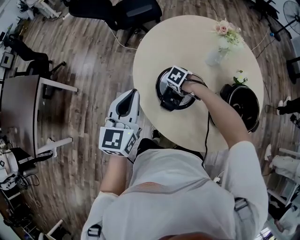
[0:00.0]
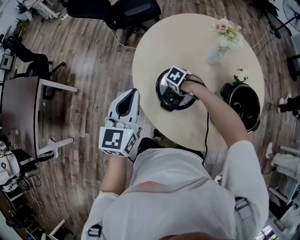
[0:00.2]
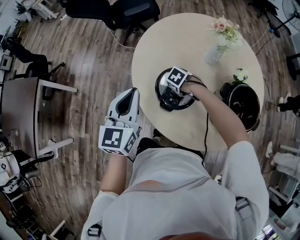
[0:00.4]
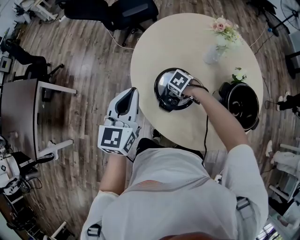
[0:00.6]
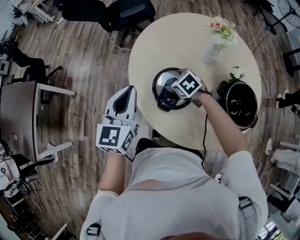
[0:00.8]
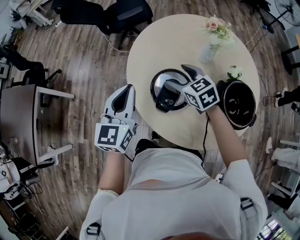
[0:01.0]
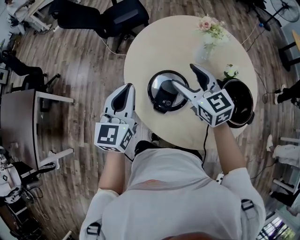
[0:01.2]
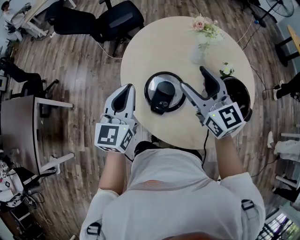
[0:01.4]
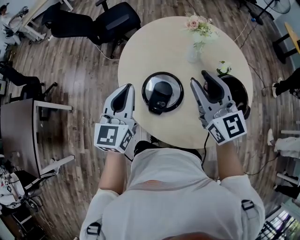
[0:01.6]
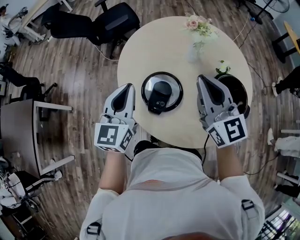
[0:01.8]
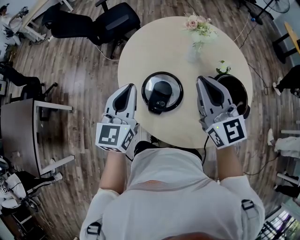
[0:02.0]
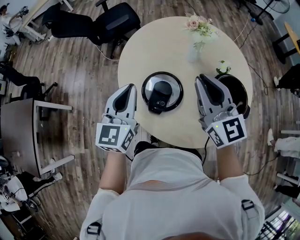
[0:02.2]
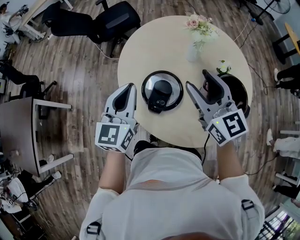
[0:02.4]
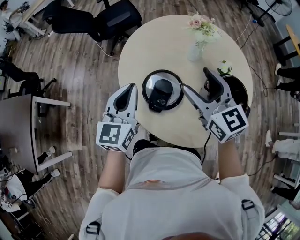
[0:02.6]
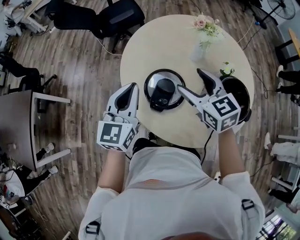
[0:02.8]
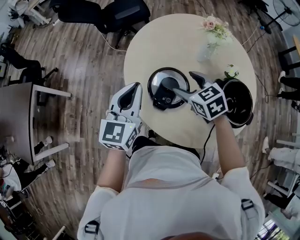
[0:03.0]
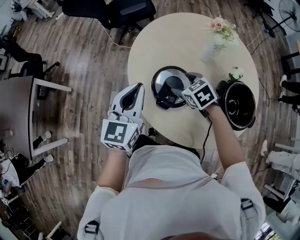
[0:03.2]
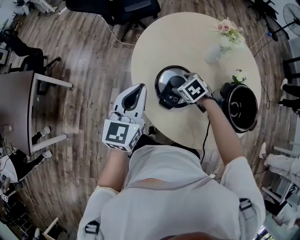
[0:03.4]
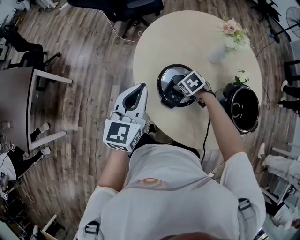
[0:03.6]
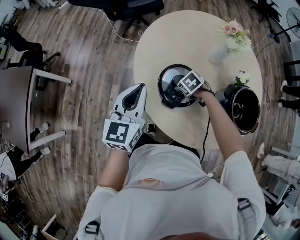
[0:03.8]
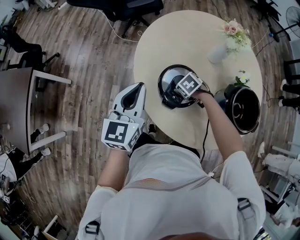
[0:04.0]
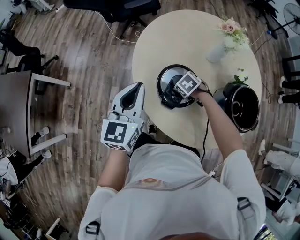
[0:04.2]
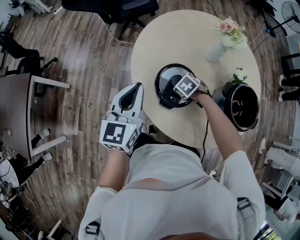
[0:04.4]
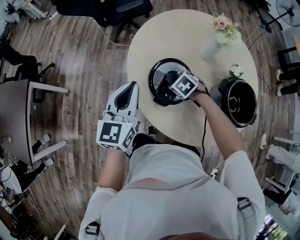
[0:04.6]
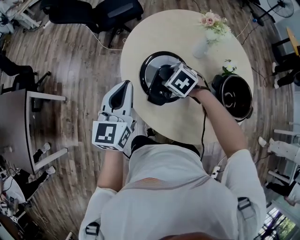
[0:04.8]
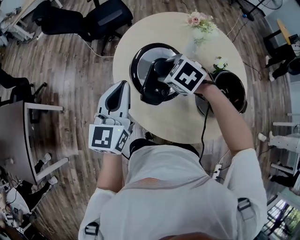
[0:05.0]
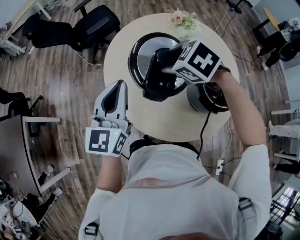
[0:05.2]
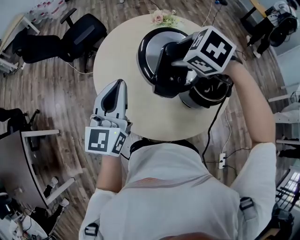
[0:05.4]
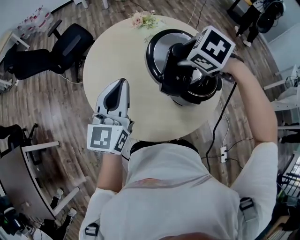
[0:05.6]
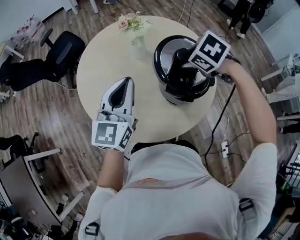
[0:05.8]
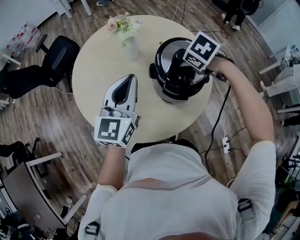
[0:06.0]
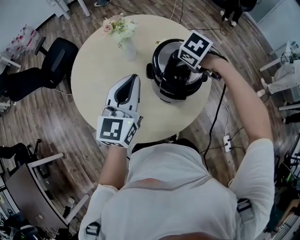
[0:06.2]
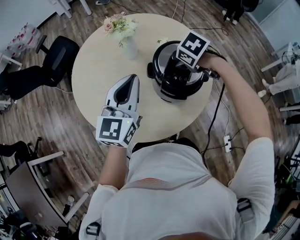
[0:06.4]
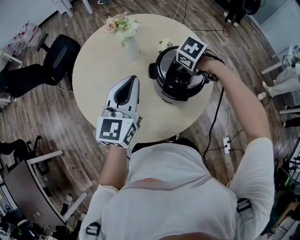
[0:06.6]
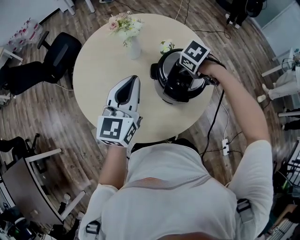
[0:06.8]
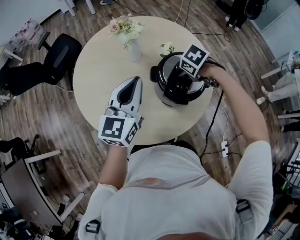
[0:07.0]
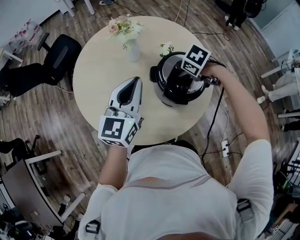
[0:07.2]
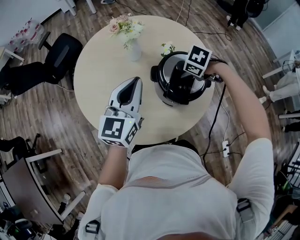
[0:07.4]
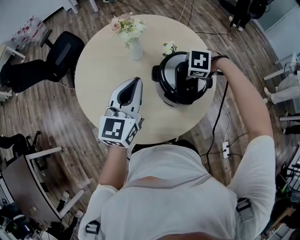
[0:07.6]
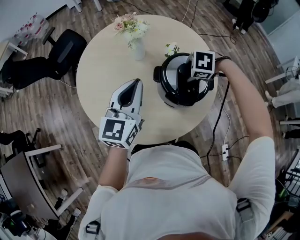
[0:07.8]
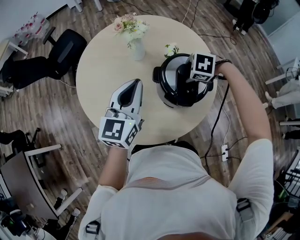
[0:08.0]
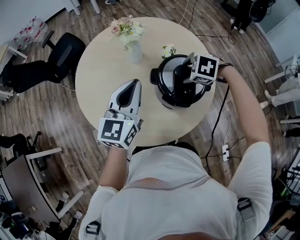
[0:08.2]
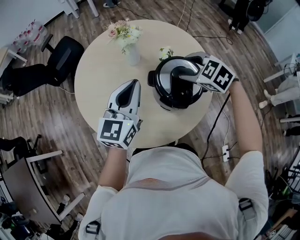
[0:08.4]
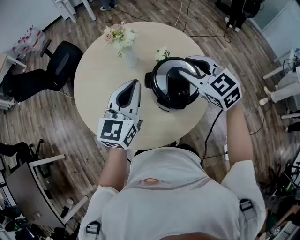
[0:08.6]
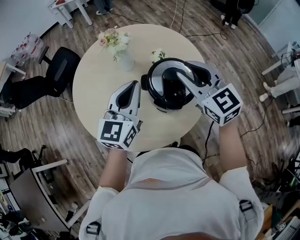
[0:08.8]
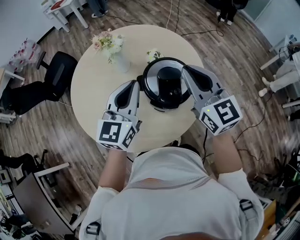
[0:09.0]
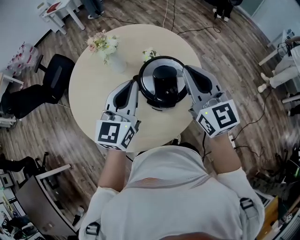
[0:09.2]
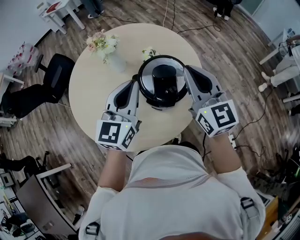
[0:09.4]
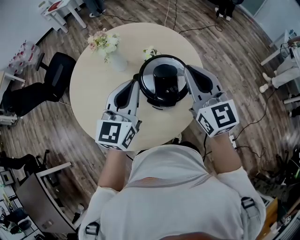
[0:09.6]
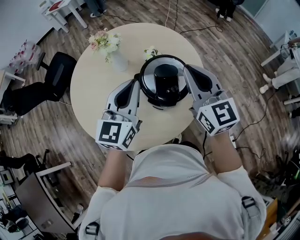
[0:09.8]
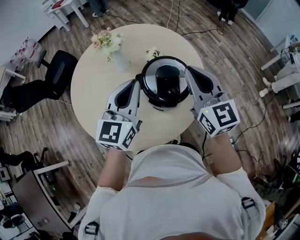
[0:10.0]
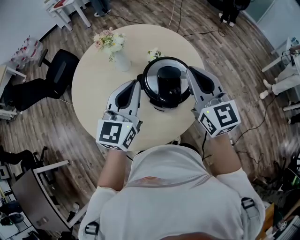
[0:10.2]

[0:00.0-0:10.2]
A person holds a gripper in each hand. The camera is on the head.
0:00.0 to 0:01.4: The right gripper goes roughly 35 cm upward, and angles its fingers upward, by some 80 degrees, while the left gripper ends up roughly 5 cm from where it was.
0:01.4 to 0:03.0: The right gripper is displaced downward by about 15 cm, points its fingers some 40 degrees further downward, and closes, then reopens.
0:03.0 to 0:04.4: The left gripper ends up about 5 cm from where it was, while the right gripper shifts approximately 20 cm downward, and points its fingers about 30 degrees further downward.
0:04.4 to 0:05.8: The right gripper shifts by approximately 40 cm, and turns by about 20 degrees. The left gripper changes place by approximately 25 cm, and turns by some 30 degrees.
0:05.8 to 0:07.2: The left gripper moves roughly 5 cm. Meanwhile the right gripper heads downward, covering some 10 cm.
0:07.2 to 0:08.8: The left gripper ends up about 5 cm from where it was; the right gripper shifts roughly 20 cm upward, angles its fingers upward, by about 70 degrees, and closes its fingers.
0:08.8 to 0:10.2: The right gripper changes place by some 5 cm.

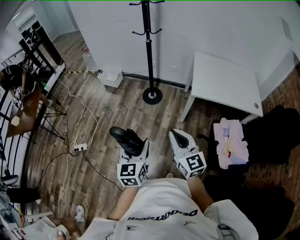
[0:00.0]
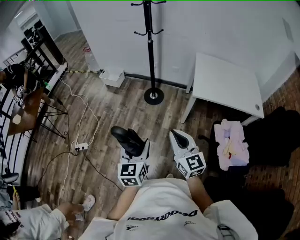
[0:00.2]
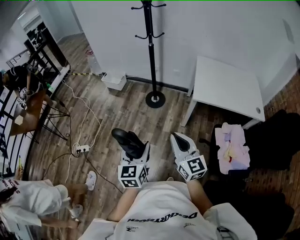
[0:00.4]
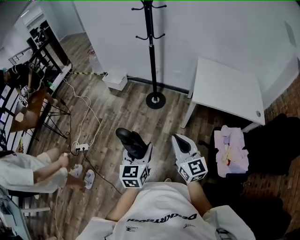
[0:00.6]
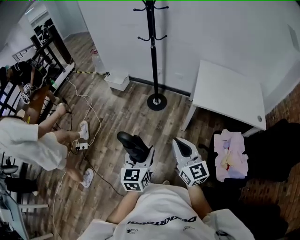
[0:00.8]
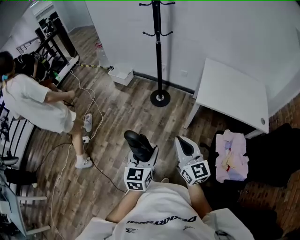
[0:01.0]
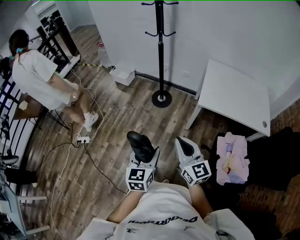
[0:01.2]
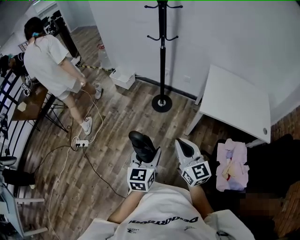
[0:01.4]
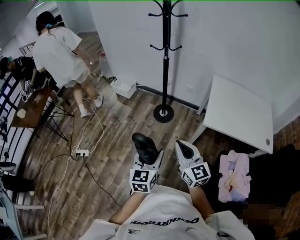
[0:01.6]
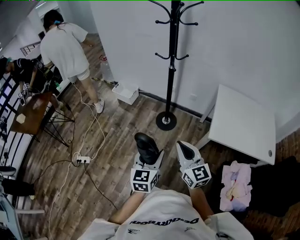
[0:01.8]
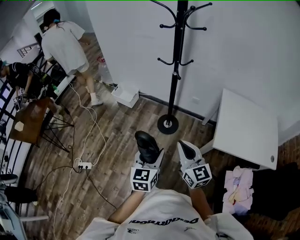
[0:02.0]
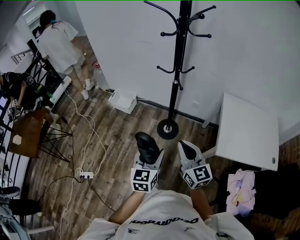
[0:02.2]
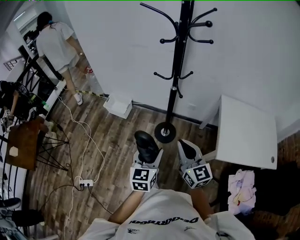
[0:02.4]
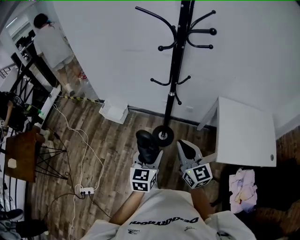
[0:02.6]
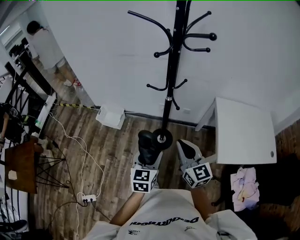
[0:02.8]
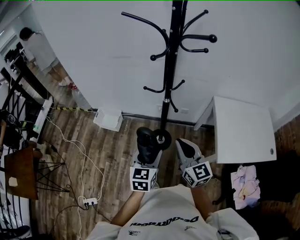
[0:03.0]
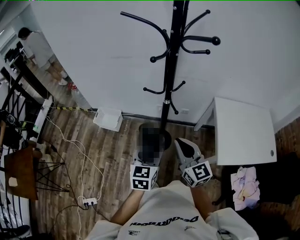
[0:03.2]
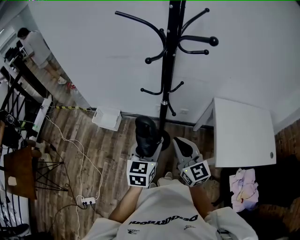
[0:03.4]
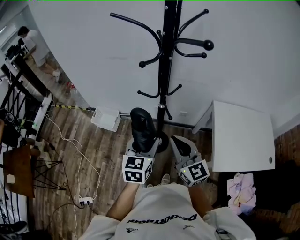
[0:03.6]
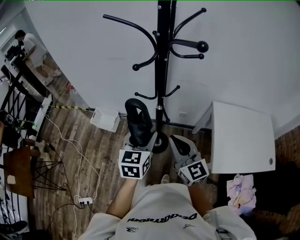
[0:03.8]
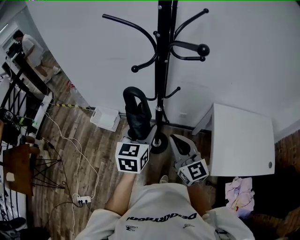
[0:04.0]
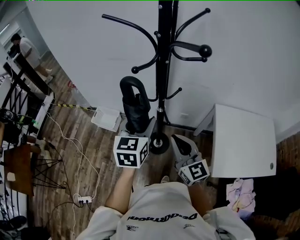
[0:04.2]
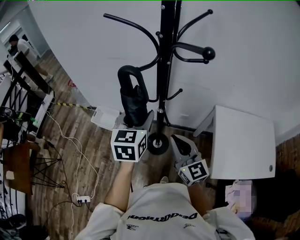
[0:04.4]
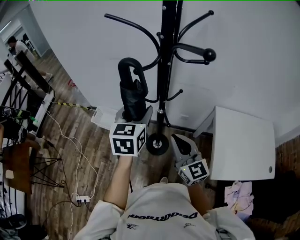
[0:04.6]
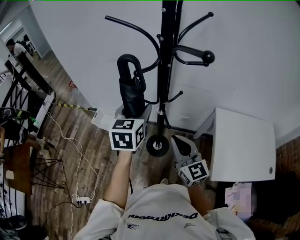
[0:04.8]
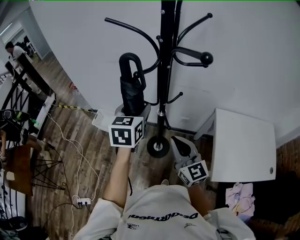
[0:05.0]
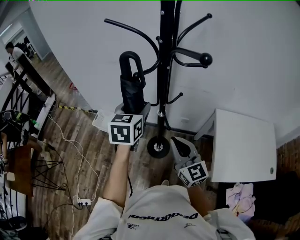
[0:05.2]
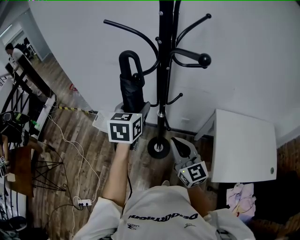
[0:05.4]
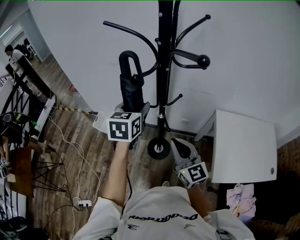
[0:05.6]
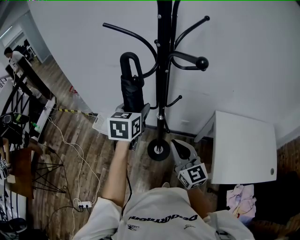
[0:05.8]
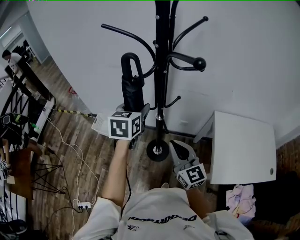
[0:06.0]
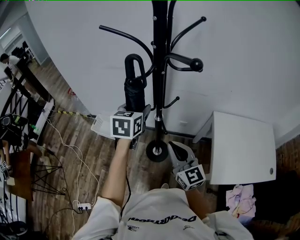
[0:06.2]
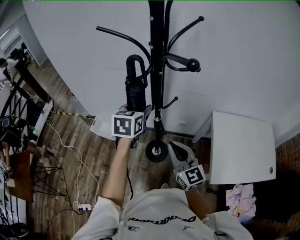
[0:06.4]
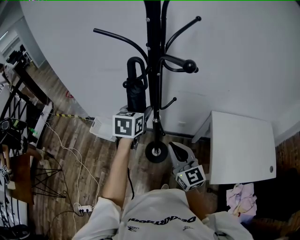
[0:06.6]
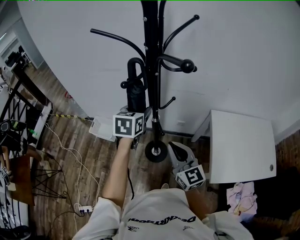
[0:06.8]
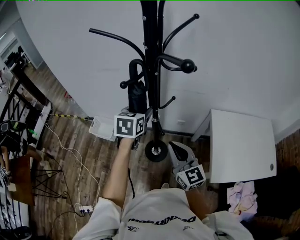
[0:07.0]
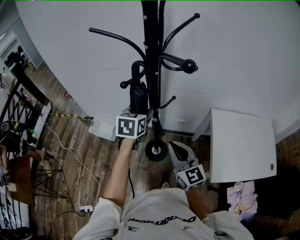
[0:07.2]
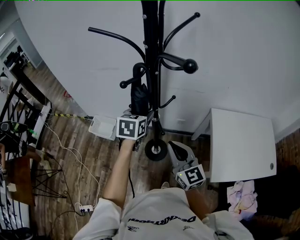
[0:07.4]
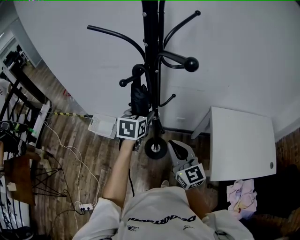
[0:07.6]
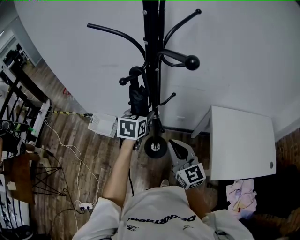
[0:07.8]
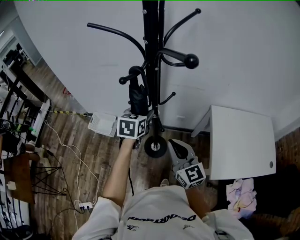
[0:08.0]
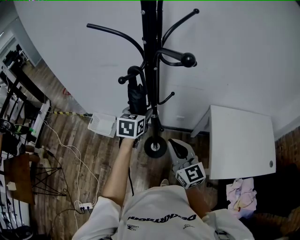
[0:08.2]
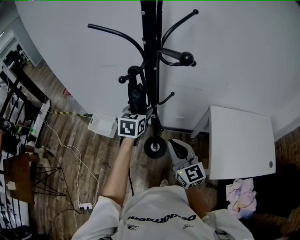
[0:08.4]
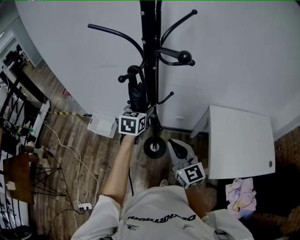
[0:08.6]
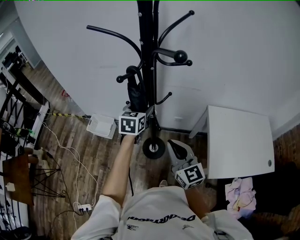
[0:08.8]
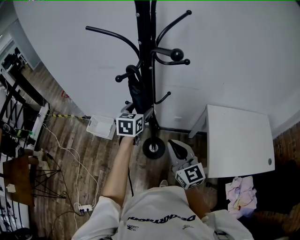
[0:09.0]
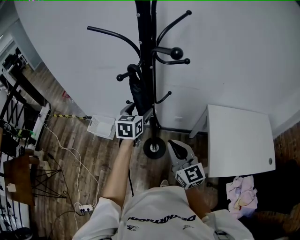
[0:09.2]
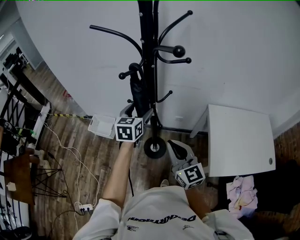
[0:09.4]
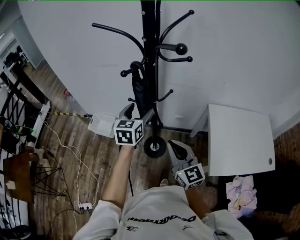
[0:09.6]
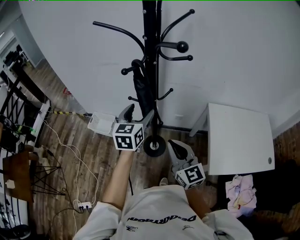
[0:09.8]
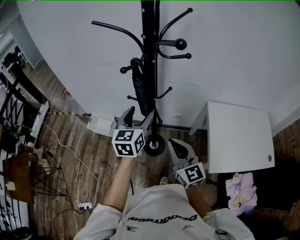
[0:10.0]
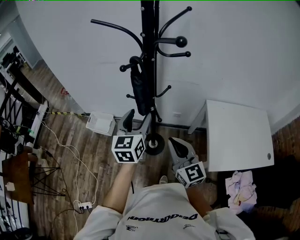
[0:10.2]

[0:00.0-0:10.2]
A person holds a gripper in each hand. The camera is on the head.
0:00.0 to 0:01.4: The left gripper heads to the right and forward, covering roughly 10 cm, while the right gripper shifts approximately 10 cm forward and to the right.
0:01.4 to 0:03.0: The pair of grippers is taken forward, roughly 60 cm.
0:03.0 to 0:04.4: The right gripper shifts about 10 cm forward and to the right. Meanwhile the left gripper shifts some 25 cm forward and upward.
0:04.4 to 0:05.8: The left gripper moves forward, about 5 cm.
0:05.8 to 0:07.2: The left gripper shifts roughly 5 cm downward.
0:07.2 to 0:08.8: The grippers move only a little.
0:08.8 to 0:10.2: The left gripper travels backward and upward by about 15 cm.

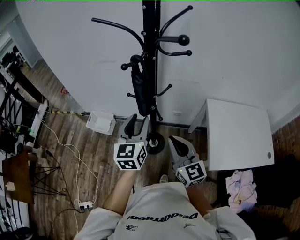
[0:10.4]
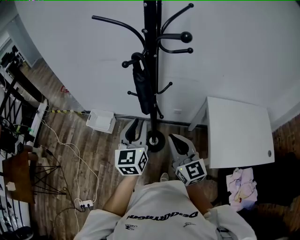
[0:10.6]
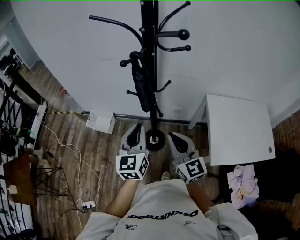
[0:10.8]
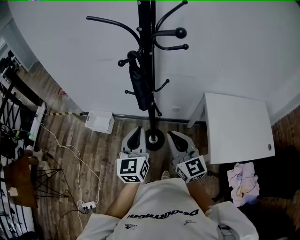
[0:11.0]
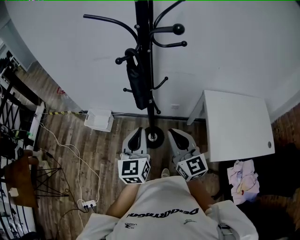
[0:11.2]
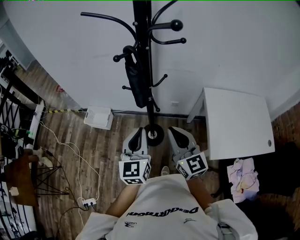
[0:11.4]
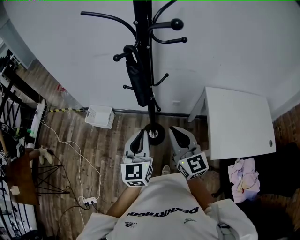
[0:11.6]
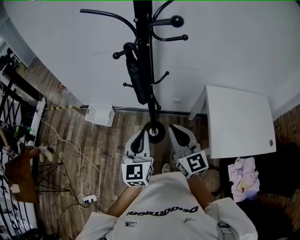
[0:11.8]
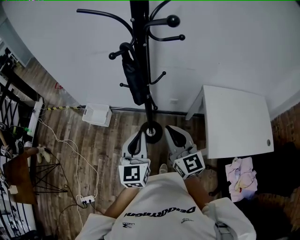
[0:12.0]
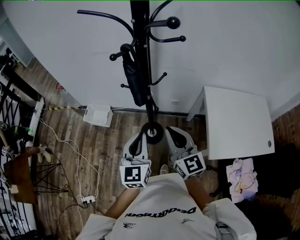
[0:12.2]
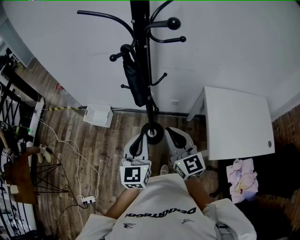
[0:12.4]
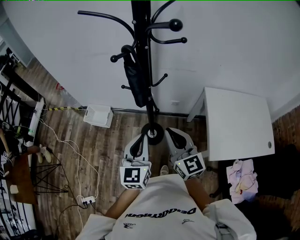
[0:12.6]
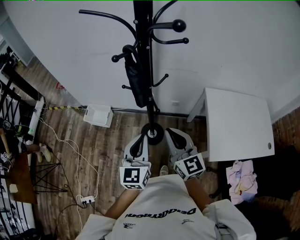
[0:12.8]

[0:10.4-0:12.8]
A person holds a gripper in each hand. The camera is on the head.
0:10.4 to 0:11.6: The left gripper shifts some 5 cm backward, and closes its fingers.
0:11.6 to 0:12.8: The grippers make only small movements.

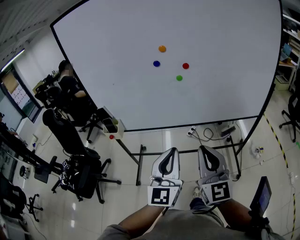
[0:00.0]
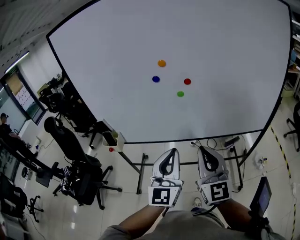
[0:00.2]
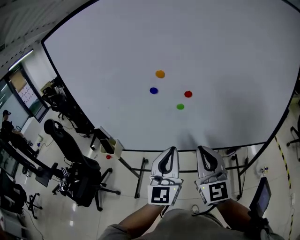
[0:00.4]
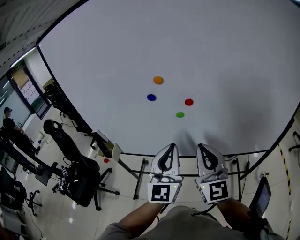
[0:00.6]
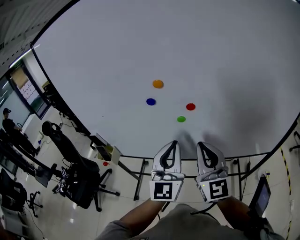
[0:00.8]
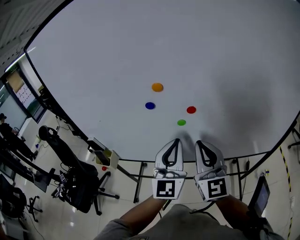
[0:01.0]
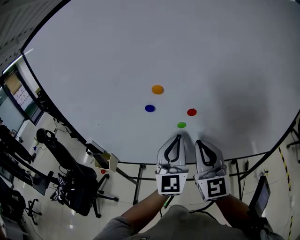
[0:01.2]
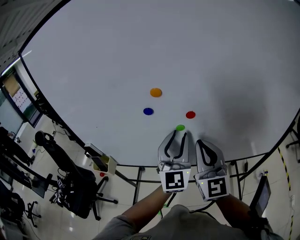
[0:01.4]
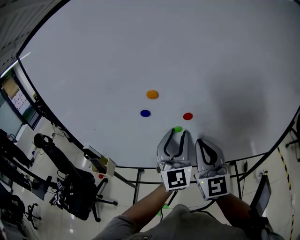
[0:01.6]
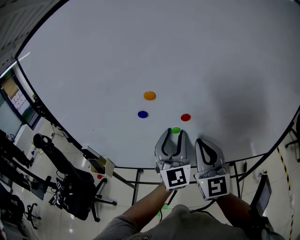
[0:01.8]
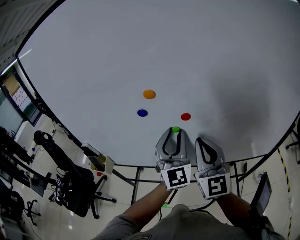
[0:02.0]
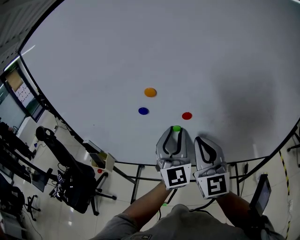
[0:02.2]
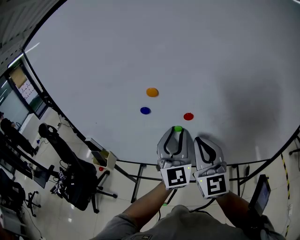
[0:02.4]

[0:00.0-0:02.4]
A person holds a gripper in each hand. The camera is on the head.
0:00.0 to 0:01.2: The two grippers go about 25 cm forward.
0:01.2 to 0:02.4: The left gripper opens its fingers.
